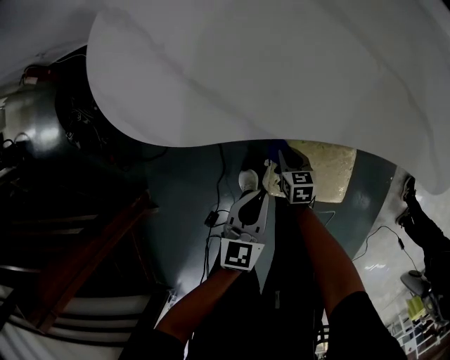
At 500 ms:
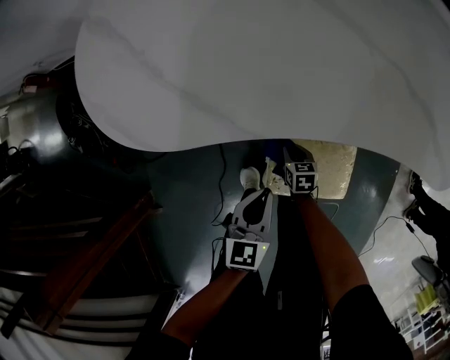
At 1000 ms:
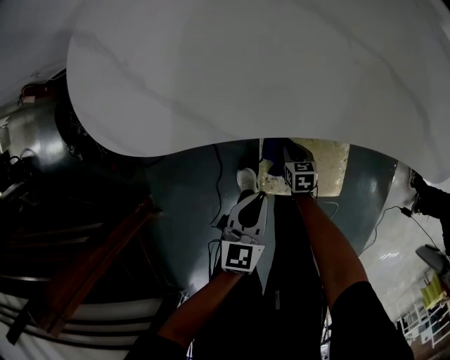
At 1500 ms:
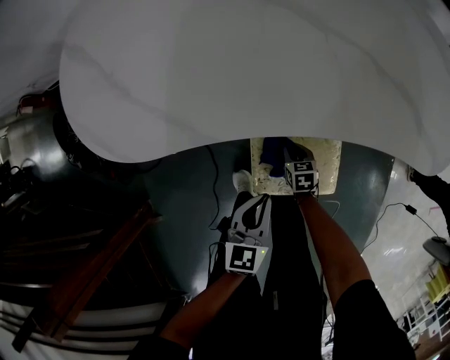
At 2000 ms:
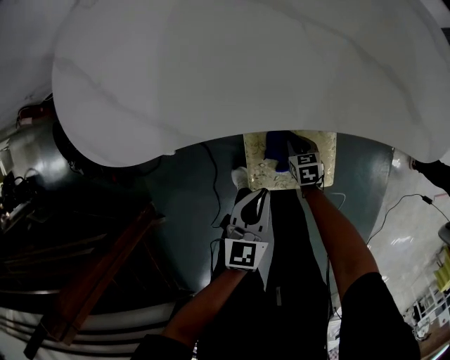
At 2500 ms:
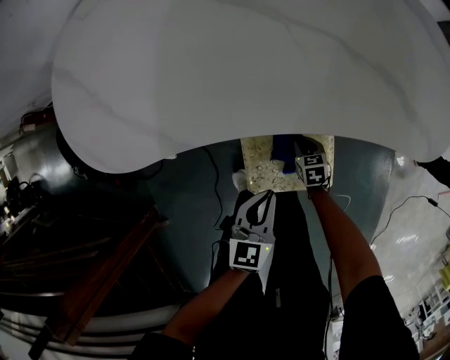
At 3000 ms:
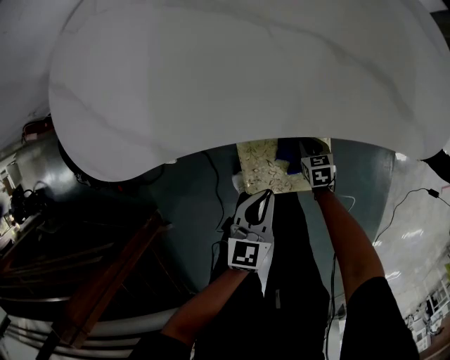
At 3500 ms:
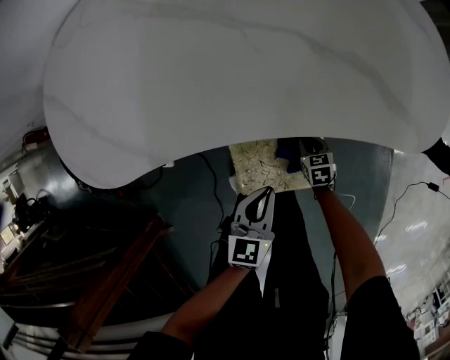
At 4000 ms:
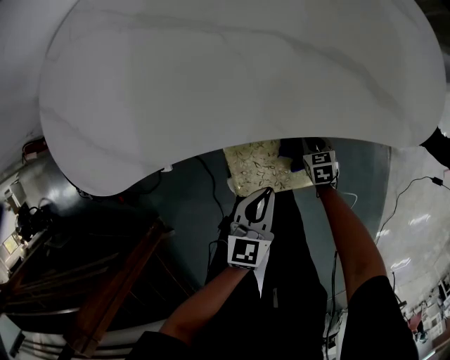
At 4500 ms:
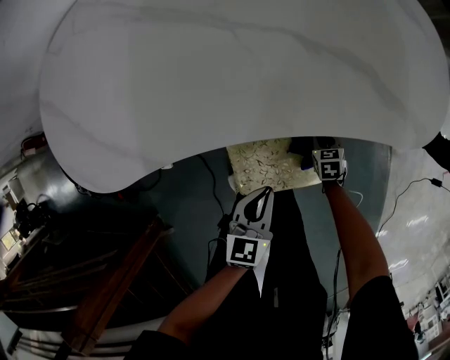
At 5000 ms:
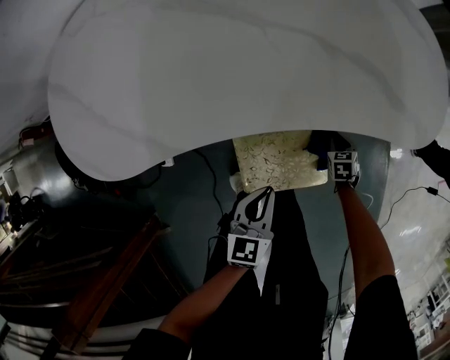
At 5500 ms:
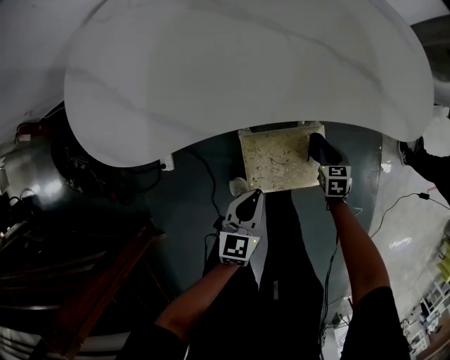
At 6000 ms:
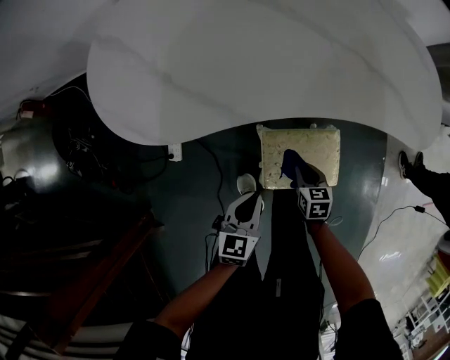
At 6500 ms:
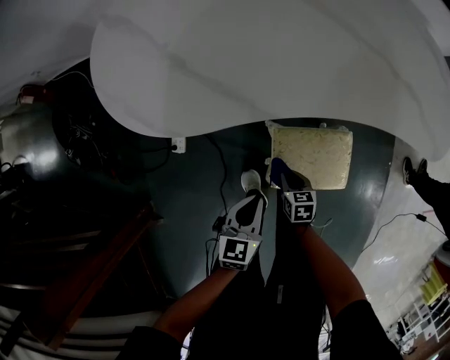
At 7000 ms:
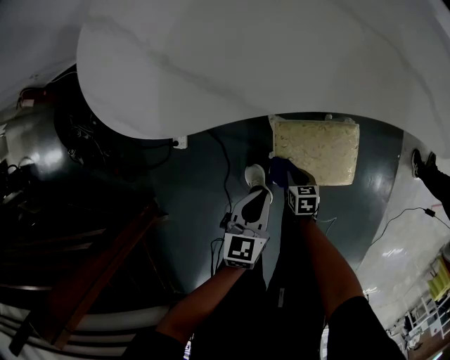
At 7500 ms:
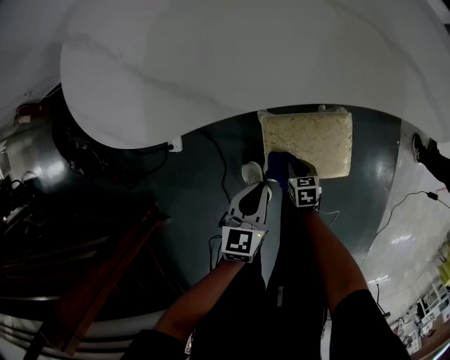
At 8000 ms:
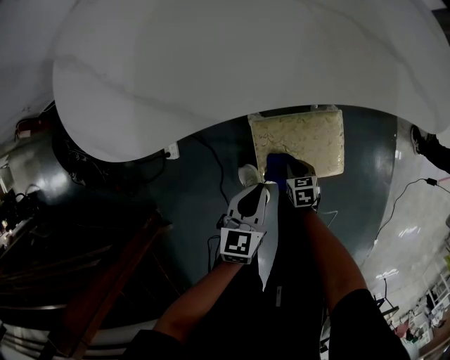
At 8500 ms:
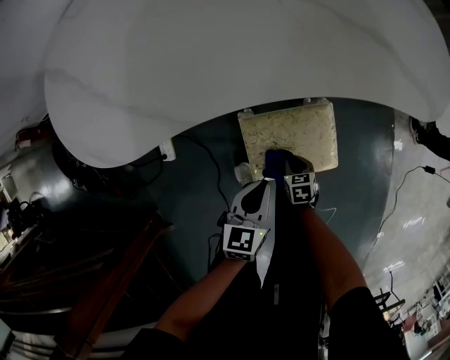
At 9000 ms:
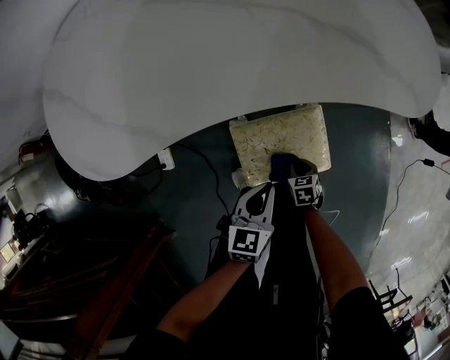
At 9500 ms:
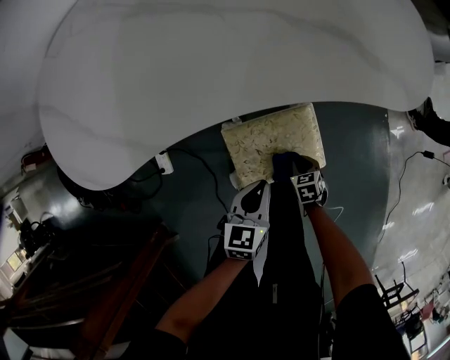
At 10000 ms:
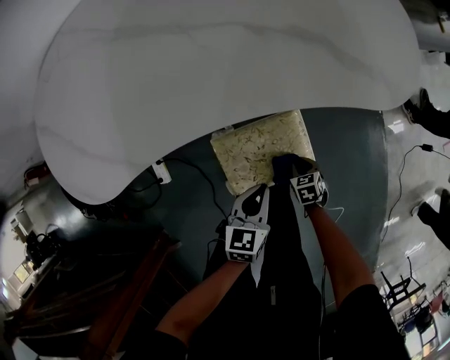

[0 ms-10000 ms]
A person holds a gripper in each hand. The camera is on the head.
0 ms to 2000 ms: Both grippers move to the right, about 10 cm.
2000 ms to 4000 ms: The right gripper moves to the right, about 15 cm; the left gripper is displaced to the right by roughly 10 cm.
4000 ms to 6000 ms: The left gripper goes some 20 cm to the left and backward. Meanwhile the right gripper moves to the left, upward and backward, some 25 cm.
6000 ms to 8000 ms: The right gripper is displaced downward and backward by some 15 cm. The left gripper travels downward by roughly 5 cm.
8000 ms to 10000 ms: Both grippers travel together to the right, about 15 cm.

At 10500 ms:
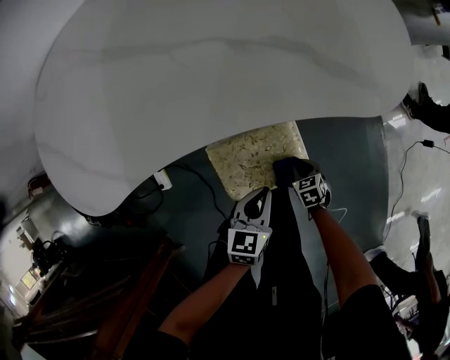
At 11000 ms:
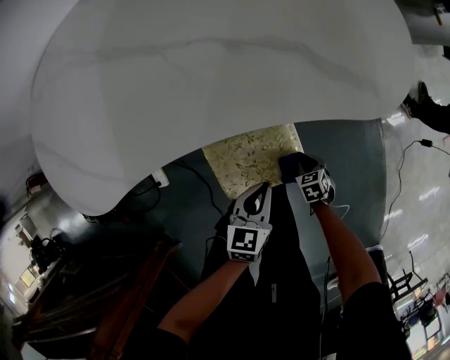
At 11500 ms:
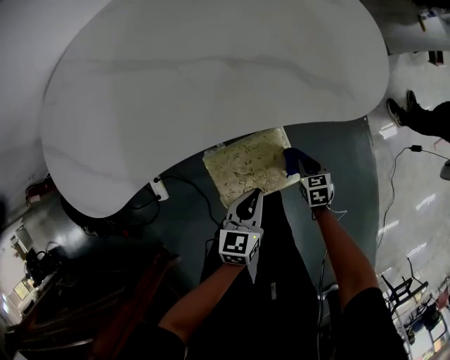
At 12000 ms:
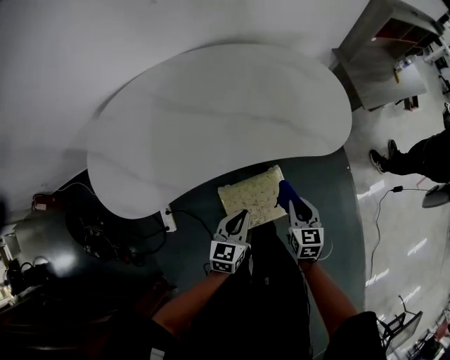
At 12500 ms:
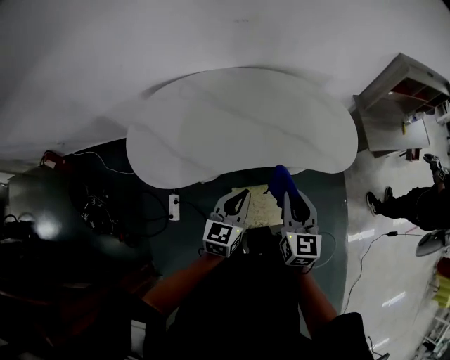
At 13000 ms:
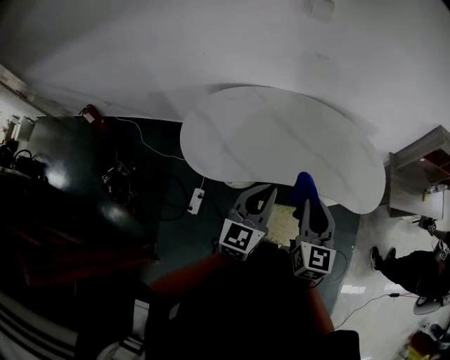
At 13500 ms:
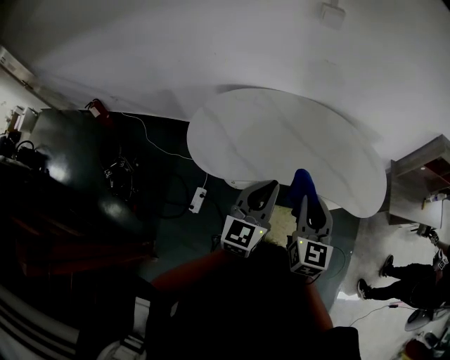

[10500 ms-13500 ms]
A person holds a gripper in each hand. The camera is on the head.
10500 ms to 12000 ms: The right gripper heads upward, covering about 35 cm, and tips its fingers upward by approximately 30 degrees. The left gripper travels upward by approximately 20 cm.
12000 ms to 13500 ms: The grippers both shift upward and to the left by some 40 cm. The right gripper rotates approximately 30 degrees. The left gripper changes its angle by approximately 40 degrees.

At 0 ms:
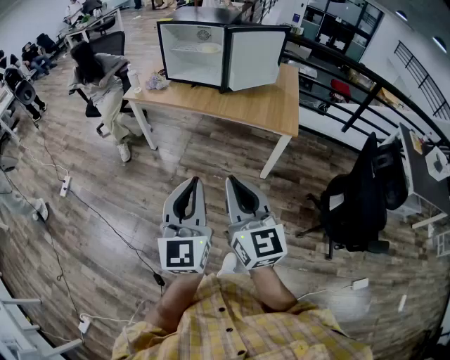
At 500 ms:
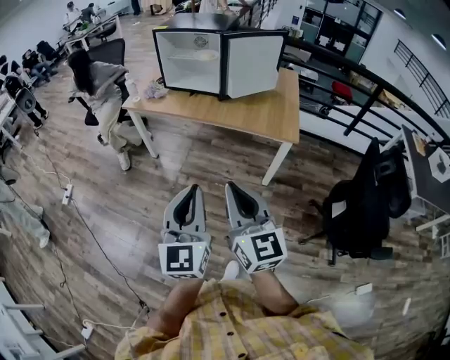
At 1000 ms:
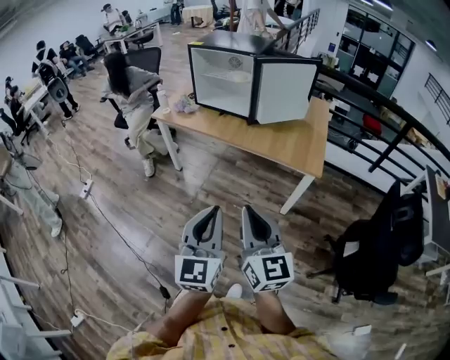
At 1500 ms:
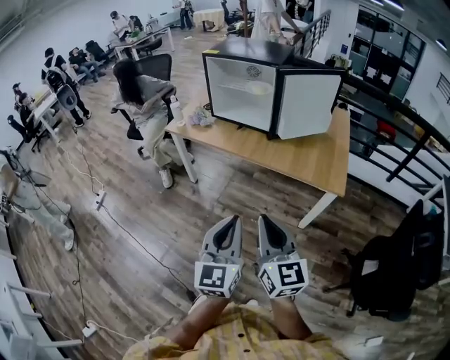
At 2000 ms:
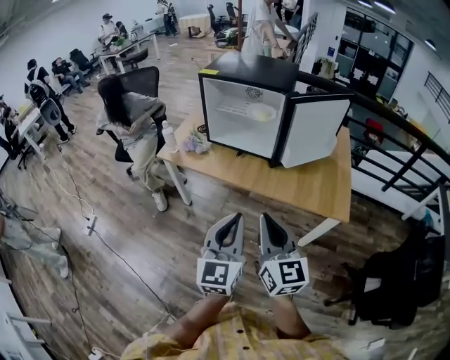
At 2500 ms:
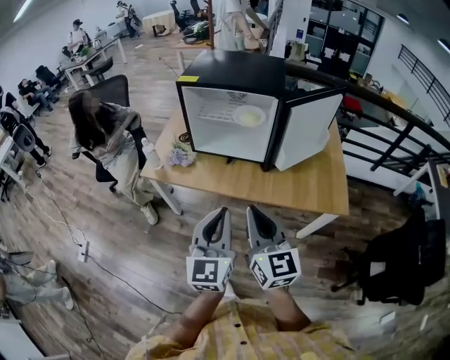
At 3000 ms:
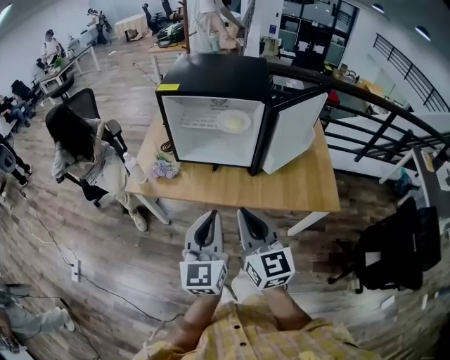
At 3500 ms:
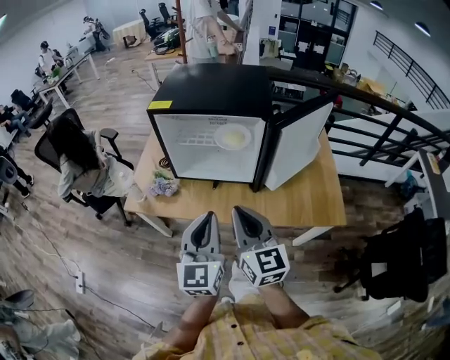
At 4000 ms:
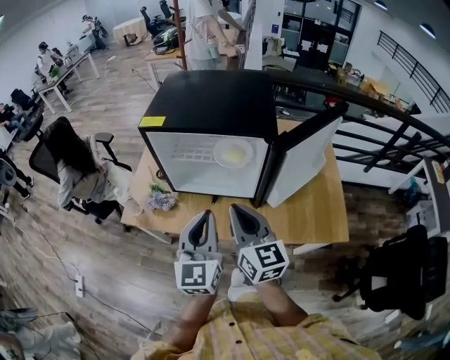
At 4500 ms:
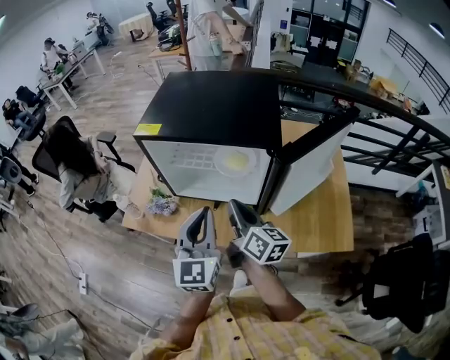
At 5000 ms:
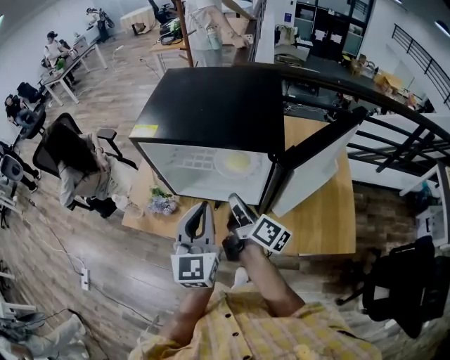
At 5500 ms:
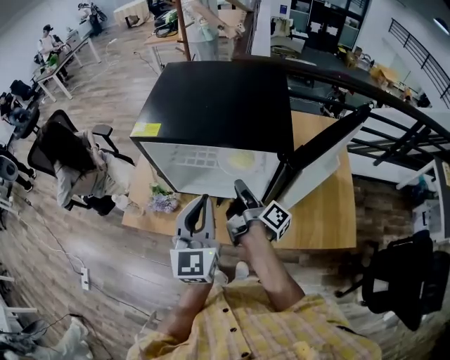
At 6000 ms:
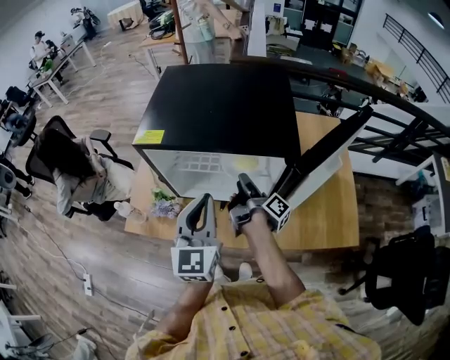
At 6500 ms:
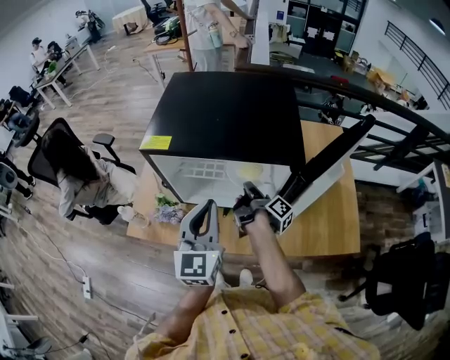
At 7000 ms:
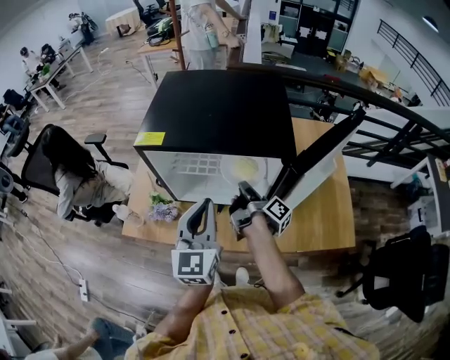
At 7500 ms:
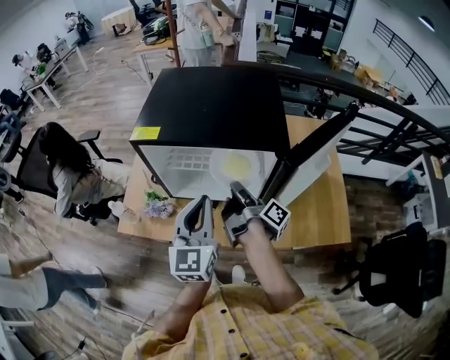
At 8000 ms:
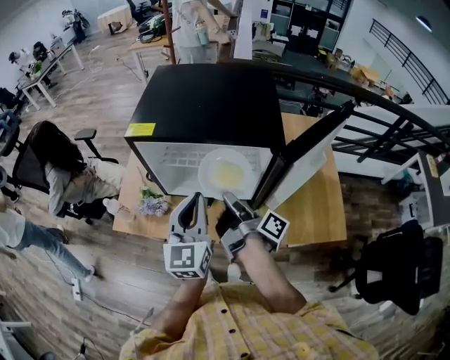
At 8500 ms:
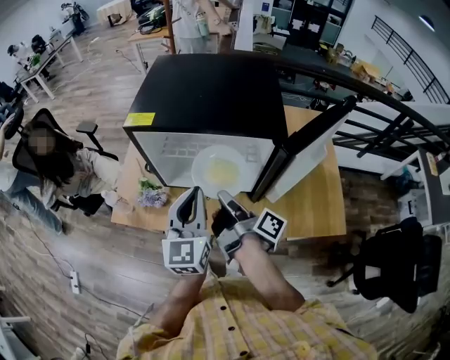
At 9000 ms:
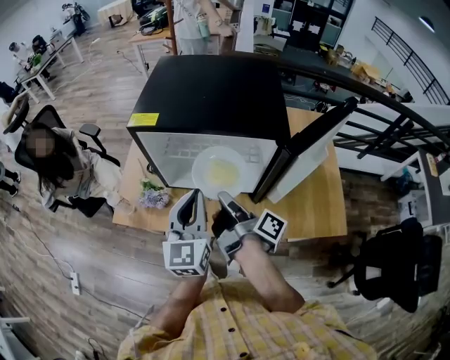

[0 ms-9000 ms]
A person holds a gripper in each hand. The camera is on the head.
0 ms to 2000 ms: The two grippers go about 30 cm forward.
2000 ms to 4500 ms: Both grippers move forward, roughly 35 cm. The right gripper swivels some 40 degrees.
4500 ms to 7000 ms: The right gripper is displaced forward and downward by roughly 15 cm, twists about 60 degrees clockwise, seen from behind, and opens, then closes once more. The left gripper heads forward, covering approximately 5 cm.
7000 ms to 9000 ms: The right gripper travels backward, upward and to the left by about 15 cm.

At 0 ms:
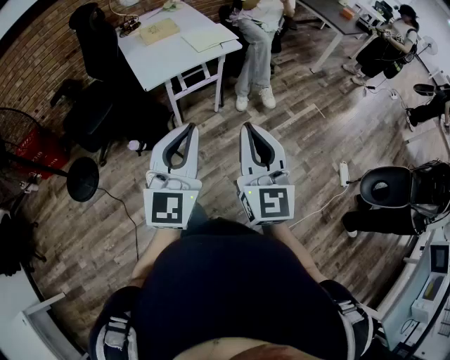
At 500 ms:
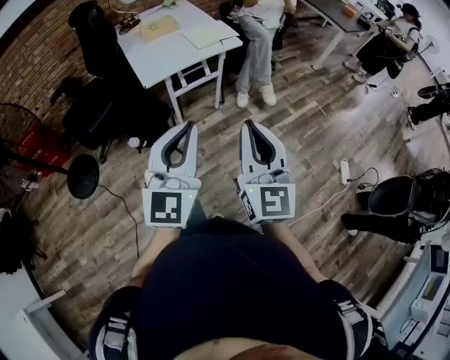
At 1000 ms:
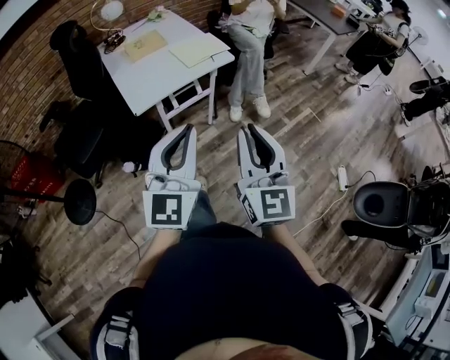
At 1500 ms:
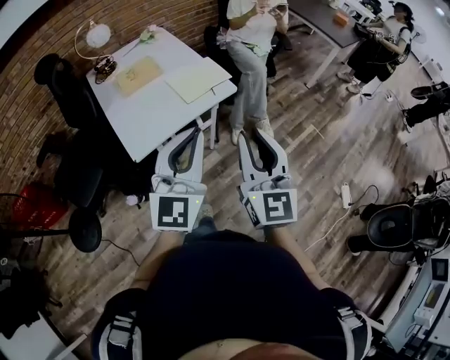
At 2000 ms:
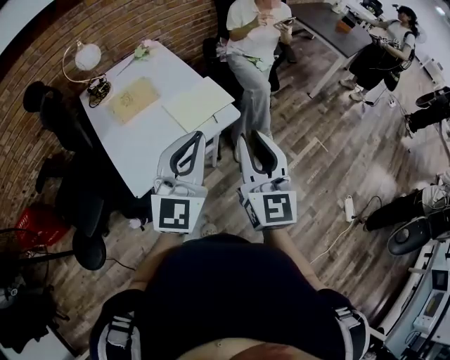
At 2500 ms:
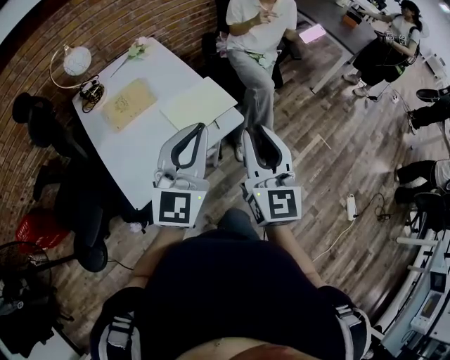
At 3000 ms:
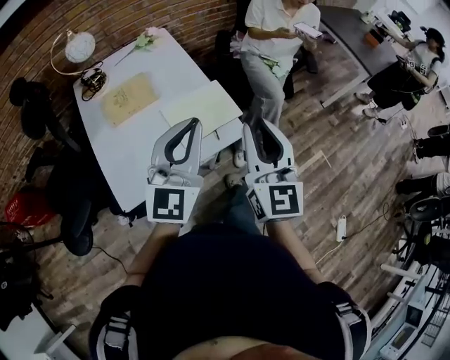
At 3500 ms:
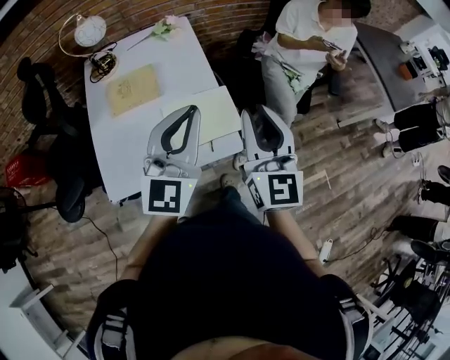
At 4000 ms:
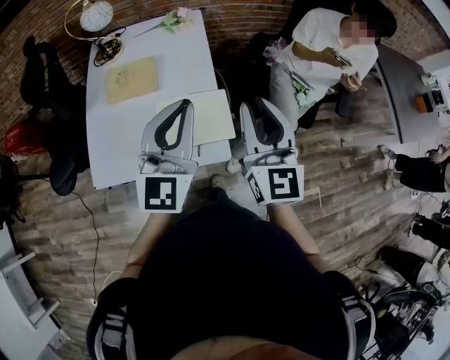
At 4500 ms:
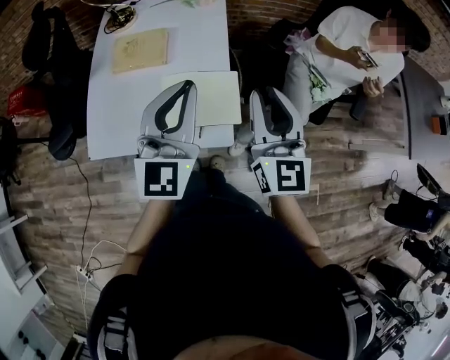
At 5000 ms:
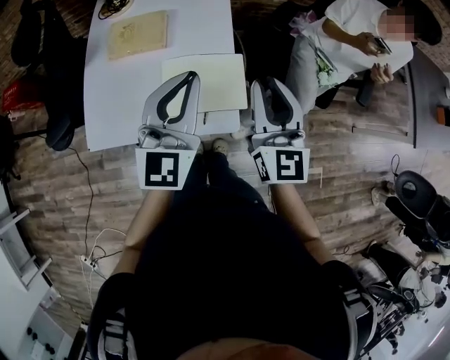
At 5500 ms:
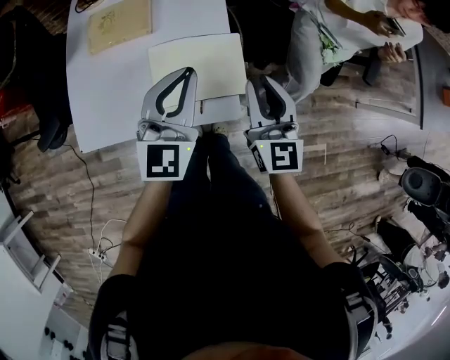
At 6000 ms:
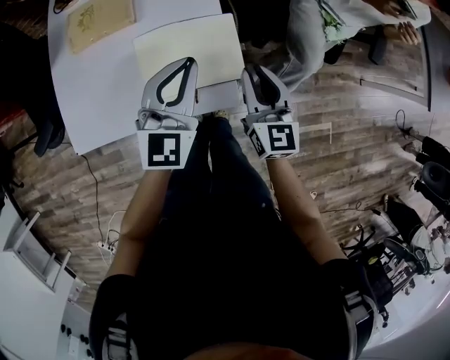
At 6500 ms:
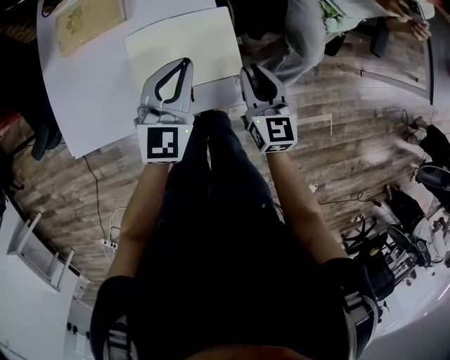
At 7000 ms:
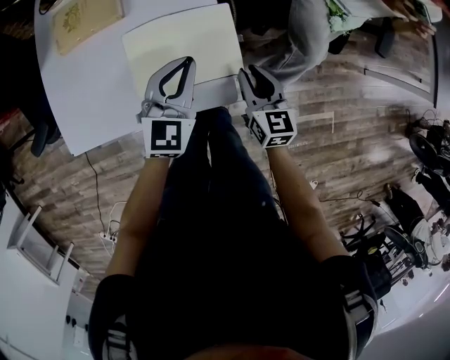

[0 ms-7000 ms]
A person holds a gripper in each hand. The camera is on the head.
0 ms to 2000 ms: The two grippers travel together, forward, approximately 40 cm.
2000 ms to 3500 ms: Both grippers move forward, approximately 25 cm.
3500 ms to 5000 ms: The left gripper goes approximately 10 cm downward and forward. The right gripper goes approximately 10 cm forward and downward.
5000 ms to 7000 ms: The grippers both shift downward by approximately 25 cm. The right gripper turns by approximately 30 degrees, while the left gripper swivels about 20 degrees.
